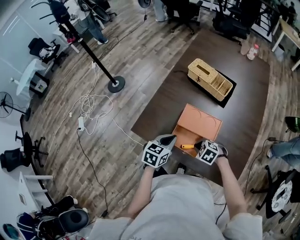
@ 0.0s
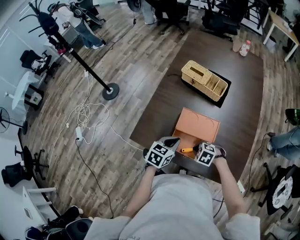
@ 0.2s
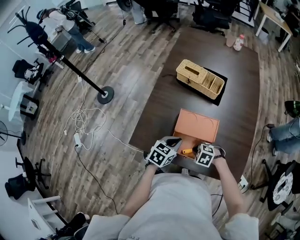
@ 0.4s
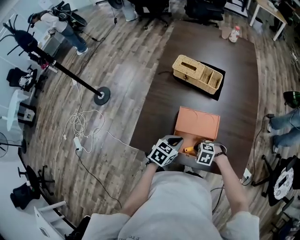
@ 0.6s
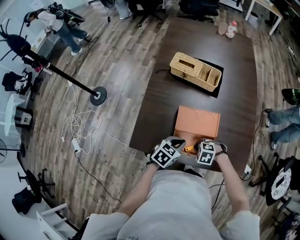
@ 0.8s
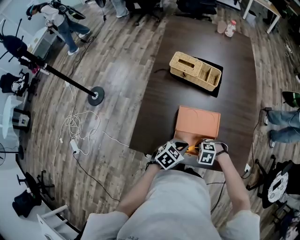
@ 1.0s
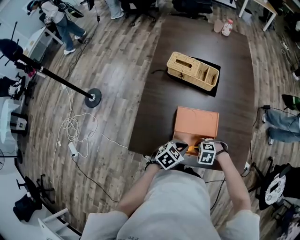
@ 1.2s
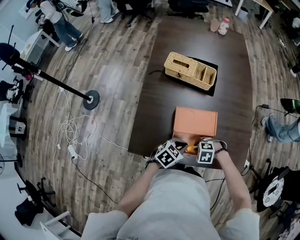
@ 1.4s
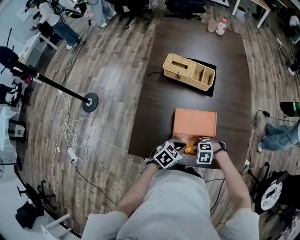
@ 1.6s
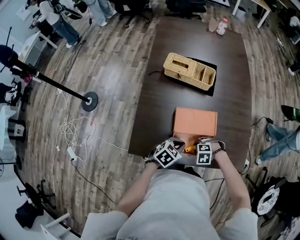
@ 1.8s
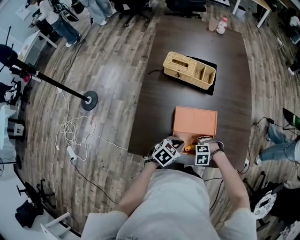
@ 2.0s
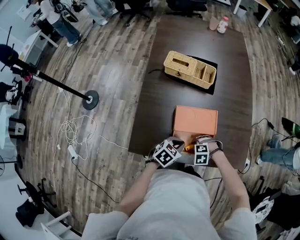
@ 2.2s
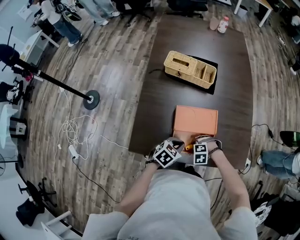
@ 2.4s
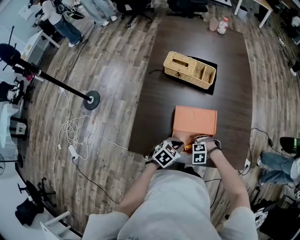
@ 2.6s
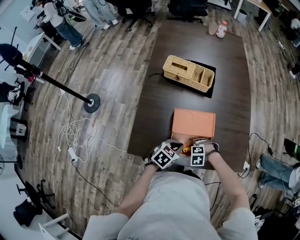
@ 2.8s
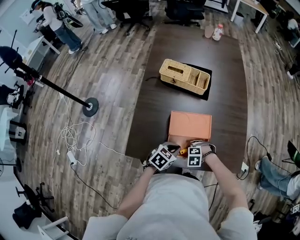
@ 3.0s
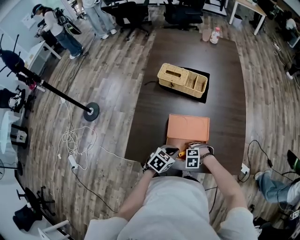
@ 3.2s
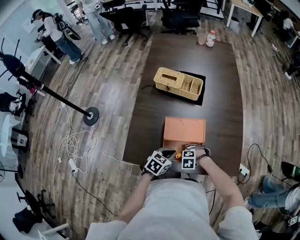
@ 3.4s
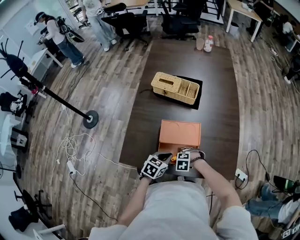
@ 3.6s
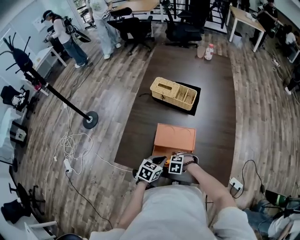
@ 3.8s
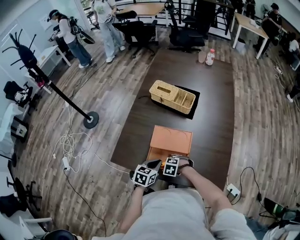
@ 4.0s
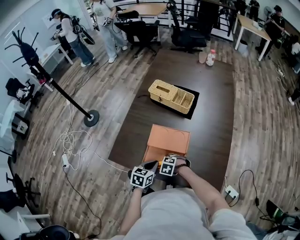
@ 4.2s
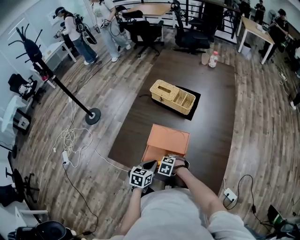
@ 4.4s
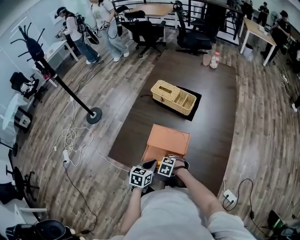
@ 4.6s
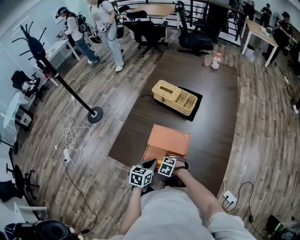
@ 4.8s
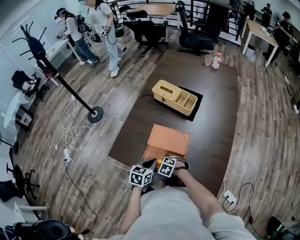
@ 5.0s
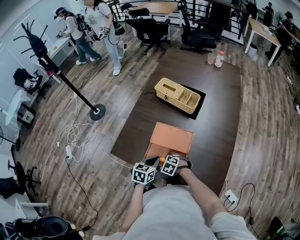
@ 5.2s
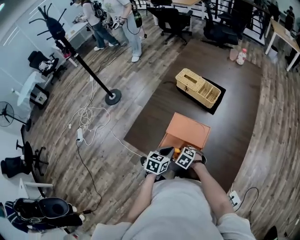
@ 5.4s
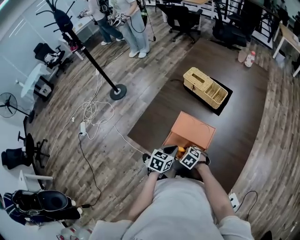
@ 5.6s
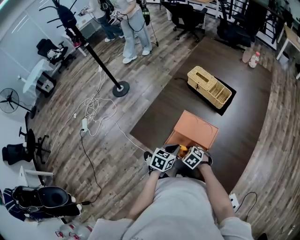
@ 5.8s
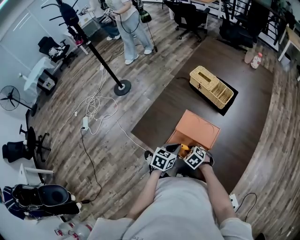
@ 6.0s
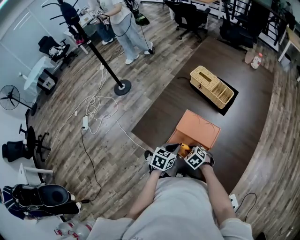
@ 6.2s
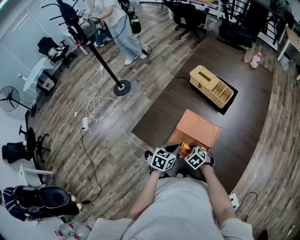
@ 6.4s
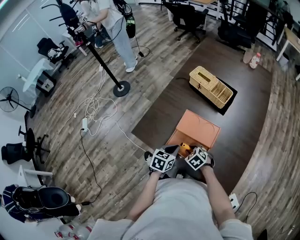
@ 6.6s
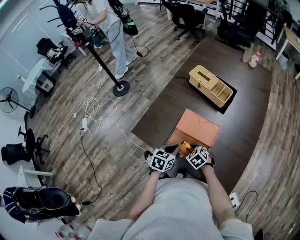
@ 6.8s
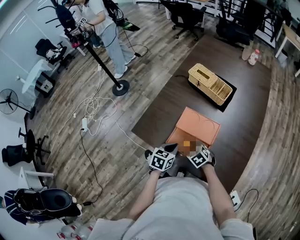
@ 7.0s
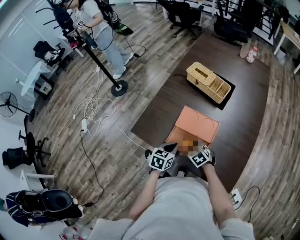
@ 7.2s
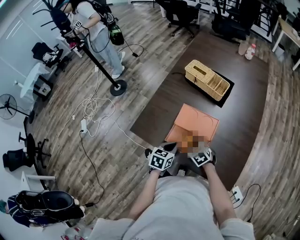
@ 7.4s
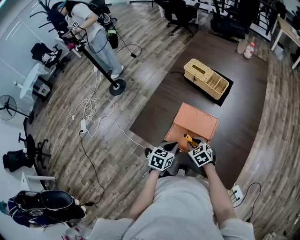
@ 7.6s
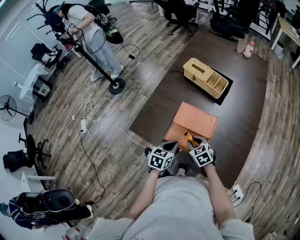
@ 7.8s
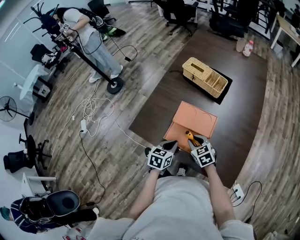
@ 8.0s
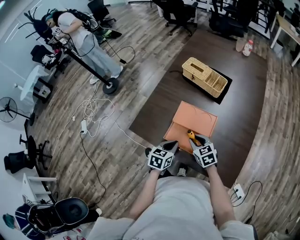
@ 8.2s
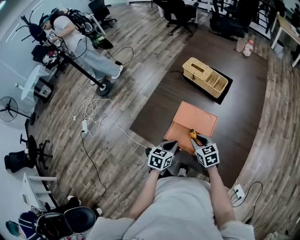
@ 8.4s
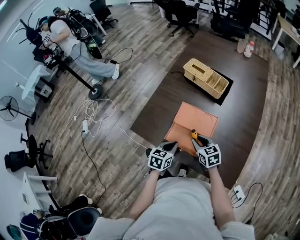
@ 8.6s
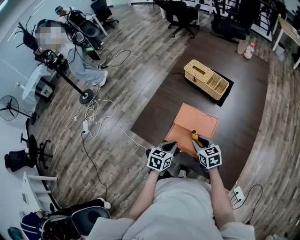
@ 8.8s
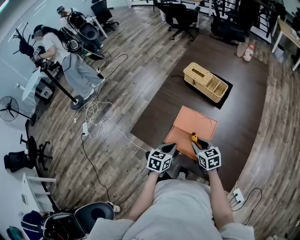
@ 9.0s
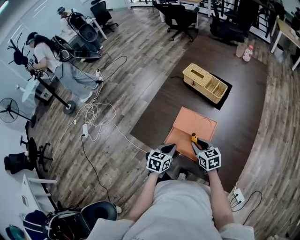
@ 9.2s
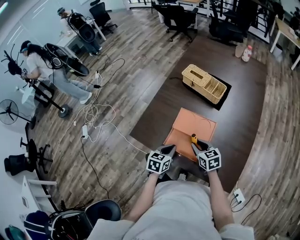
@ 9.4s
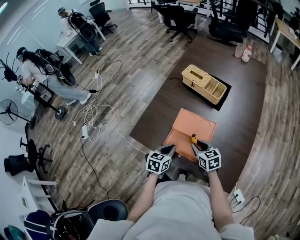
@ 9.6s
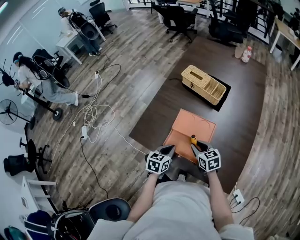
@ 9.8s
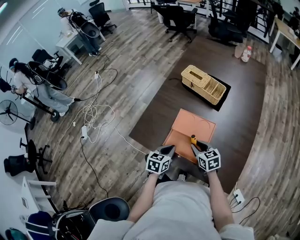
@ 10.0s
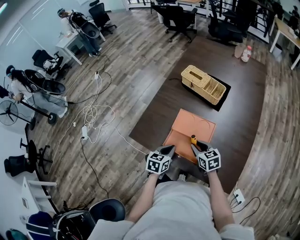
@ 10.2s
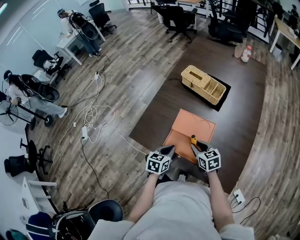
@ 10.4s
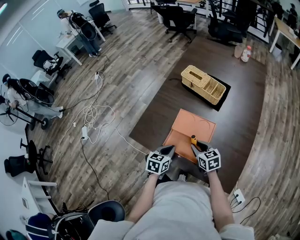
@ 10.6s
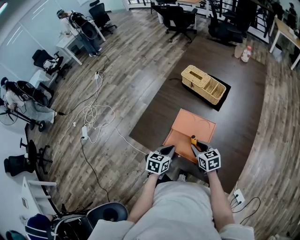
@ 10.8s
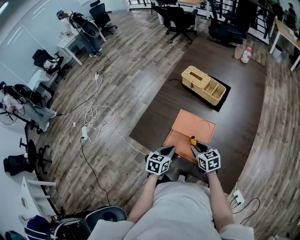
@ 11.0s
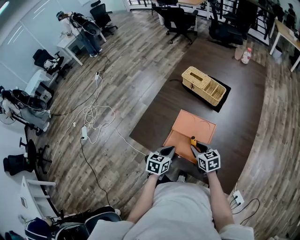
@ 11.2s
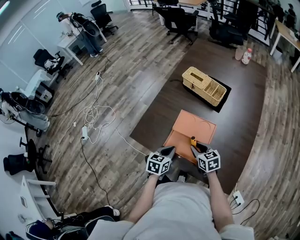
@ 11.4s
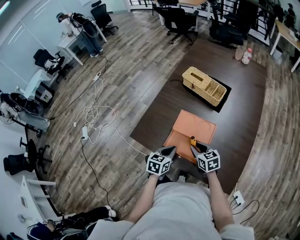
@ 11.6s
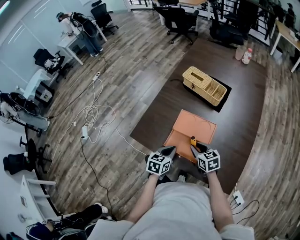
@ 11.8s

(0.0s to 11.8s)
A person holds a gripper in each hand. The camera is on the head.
0.0s - 1.4s: The left gripper changes place by approximately 10 cm, and turns by some 50 degrees.
1.4s - 3.0s: The grippers stay close to where they were, moving slightly.
3.0s - 4.4s: The left gripper turns by roughly 40 degrees.
4.4s - 6.0s: The grippers make only small movements.
6.0s - 7.4s: There are only small adjustments of the grippers.
7.4s - 8.8s: The right gripper shifts approximately 5 cm upward, and swivels approximately 30 degrees.
8.8s - 11.8s: Both grippers stay about where they are.

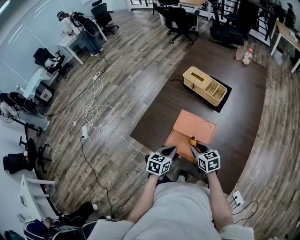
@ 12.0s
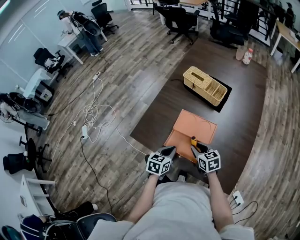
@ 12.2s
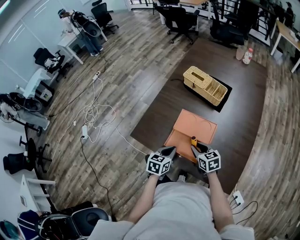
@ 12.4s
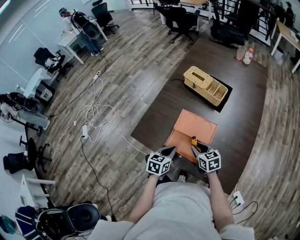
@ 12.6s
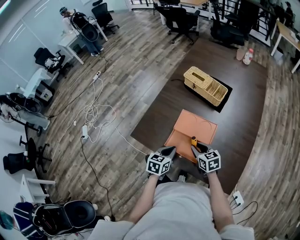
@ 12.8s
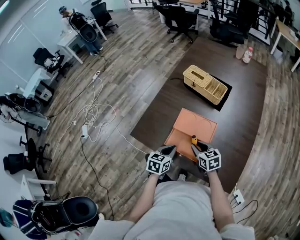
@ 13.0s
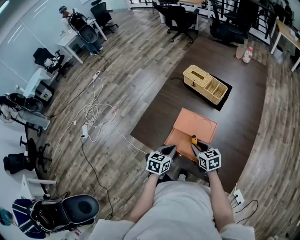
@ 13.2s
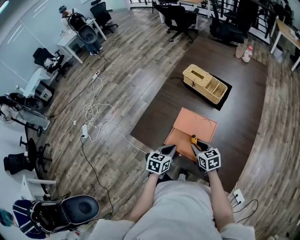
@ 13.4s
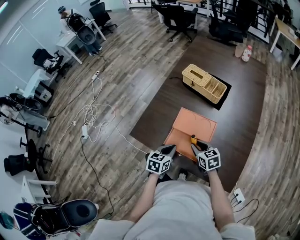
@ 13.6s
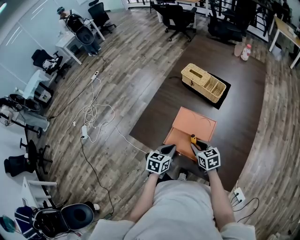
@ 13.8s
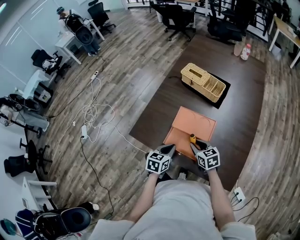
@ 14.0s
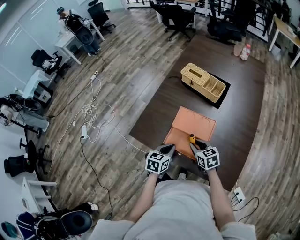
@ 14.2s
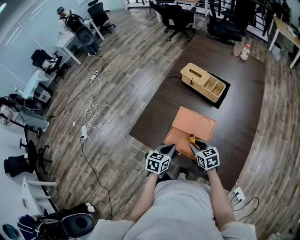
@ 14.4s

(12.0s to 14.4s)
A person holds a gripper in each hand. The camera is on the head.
12.0s - 14.4s: Both grippers stay put.

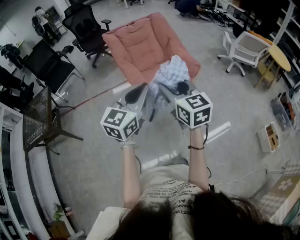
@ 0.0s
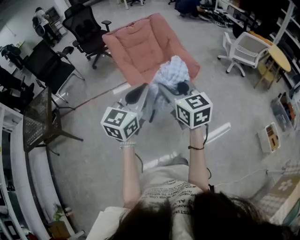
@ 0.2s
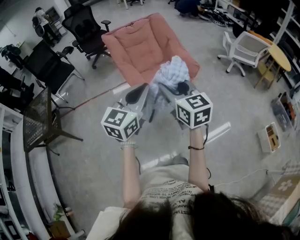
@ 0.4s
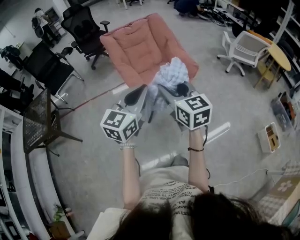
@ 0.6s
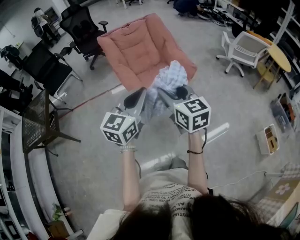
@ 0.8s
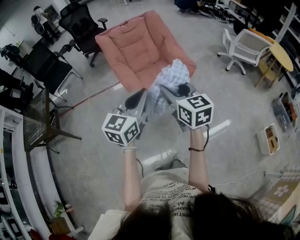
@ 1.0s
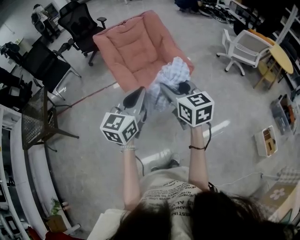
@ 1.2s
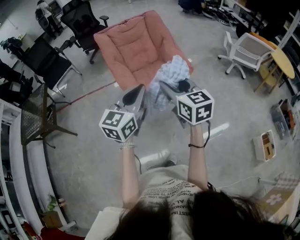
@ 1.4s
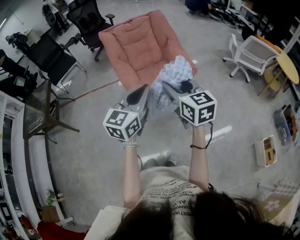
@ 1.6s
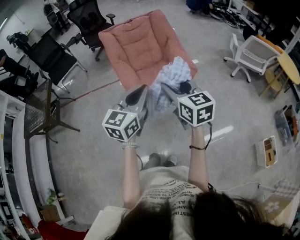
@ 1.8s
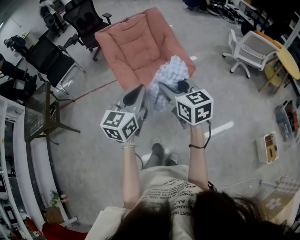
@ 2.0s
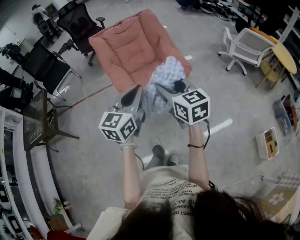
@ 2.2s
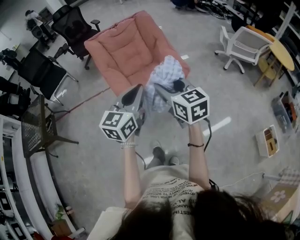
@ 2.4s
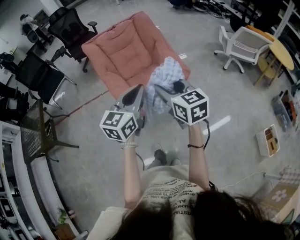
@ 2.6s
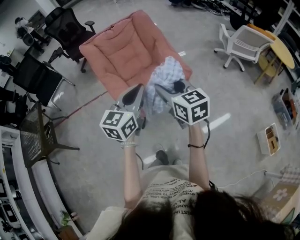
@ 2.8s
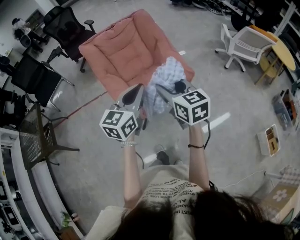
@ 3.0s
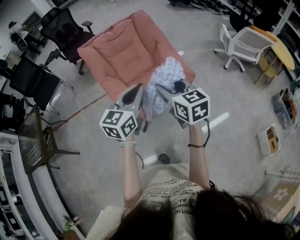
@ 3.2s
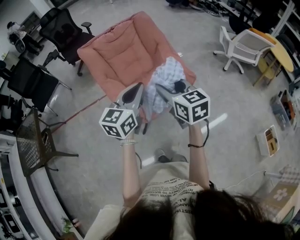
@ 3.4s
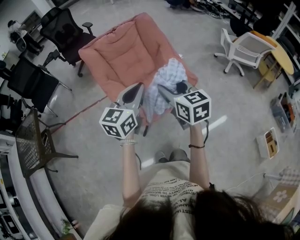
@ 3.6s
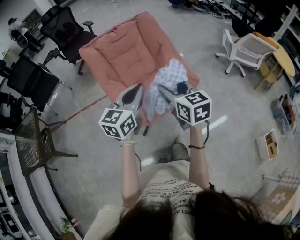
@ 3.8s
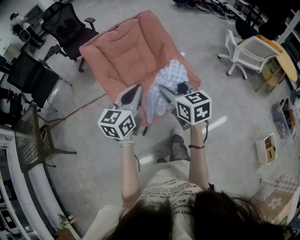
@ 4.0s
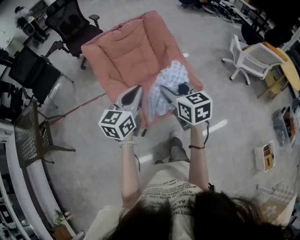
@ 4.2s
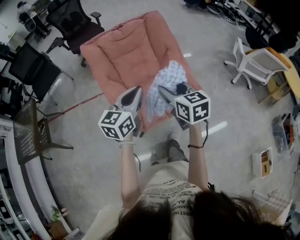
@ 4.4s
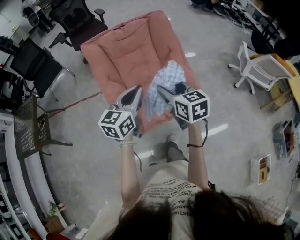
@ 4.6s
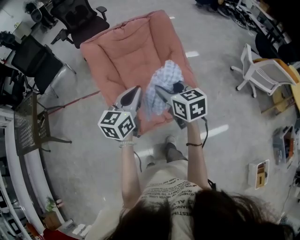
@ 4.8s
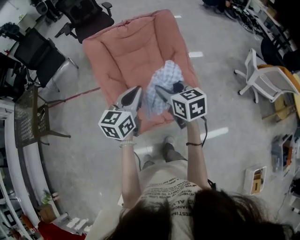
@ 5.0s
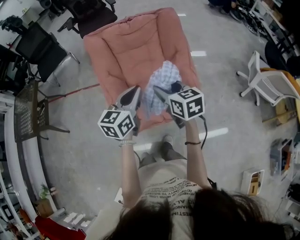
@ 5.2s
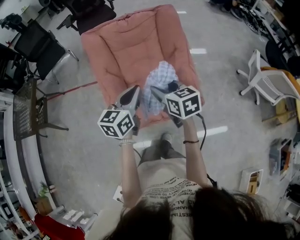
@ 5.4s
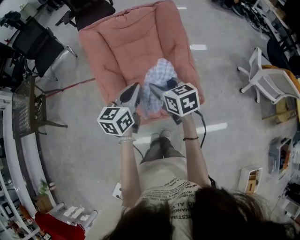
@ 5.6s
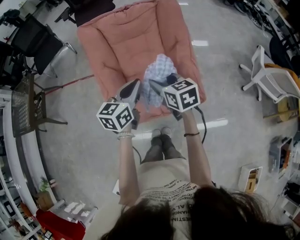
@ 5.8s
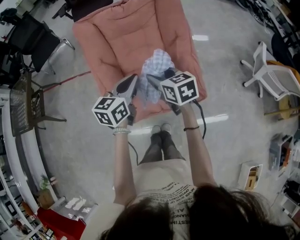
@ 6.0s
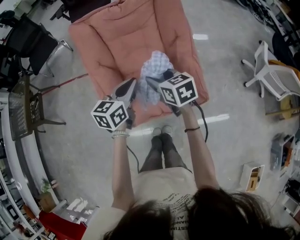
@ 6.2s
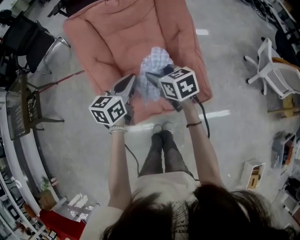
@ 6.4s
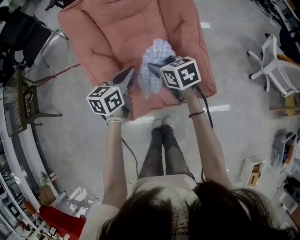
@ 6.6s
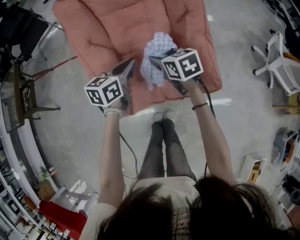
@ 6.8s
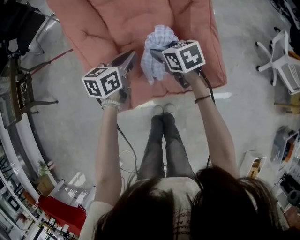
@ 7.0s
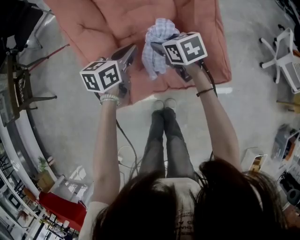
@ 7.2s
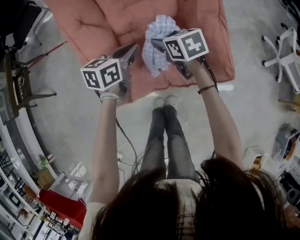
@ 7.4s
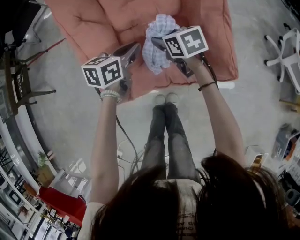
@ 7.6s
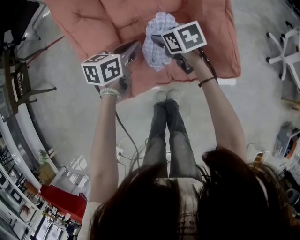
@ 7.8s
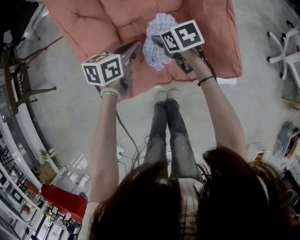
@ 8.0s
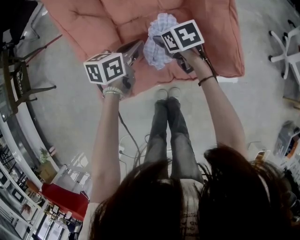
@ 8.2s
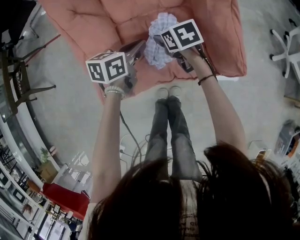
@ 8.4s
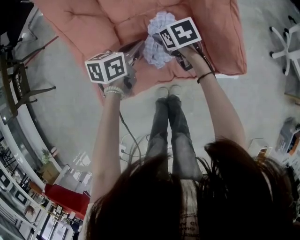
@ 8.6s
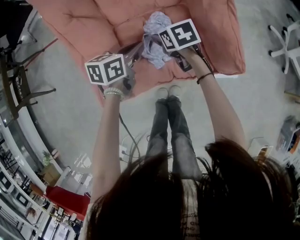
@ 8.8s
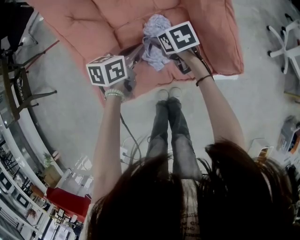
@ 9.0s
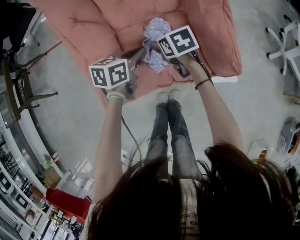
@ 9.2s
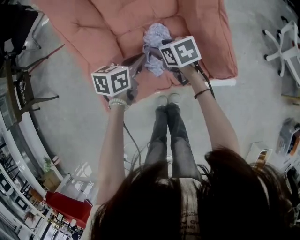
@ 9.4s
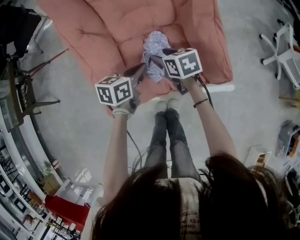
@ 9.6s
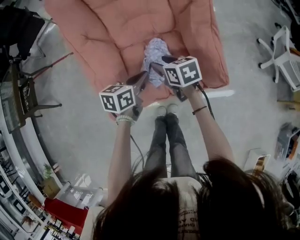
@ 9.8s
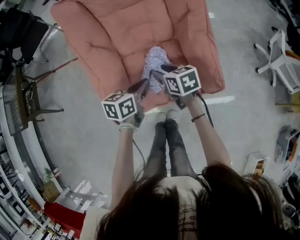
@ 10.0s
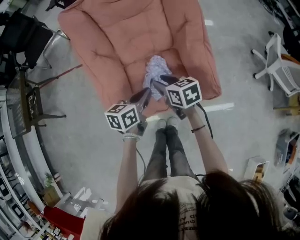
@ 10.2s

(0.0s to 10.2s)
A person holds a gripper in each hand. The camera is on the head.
0.0s - 1.4s: Both grippers move to the right and forward, approximately 15 cm.
1.4s - 3.0s: Both grippers move forward, some 15 cm.
3.0s - 4.4s: The grippers both shift forward by roughly 15 cm.
4.4s - 5.8s: The two grippers go roughly 15 cm forward and downward.
5.8s - 7.2s: The two grippers go approximately 25 cm downward.
7.2s - 8.8s: The grippers both shift downward by about 10 cm.
8.8s - 10.2s: Both grippers travel together upward and backward, about 15 cm.
